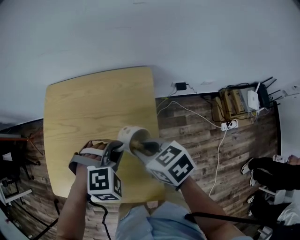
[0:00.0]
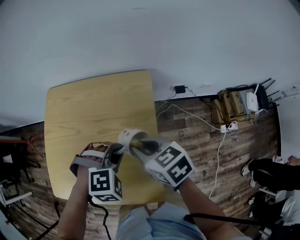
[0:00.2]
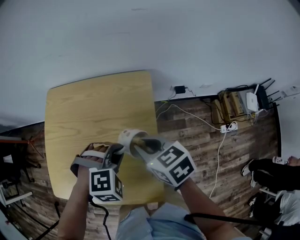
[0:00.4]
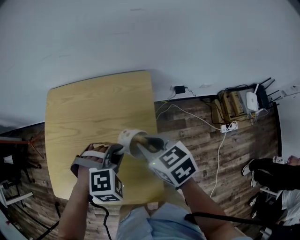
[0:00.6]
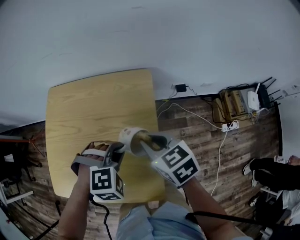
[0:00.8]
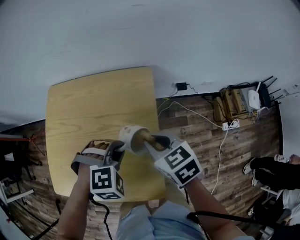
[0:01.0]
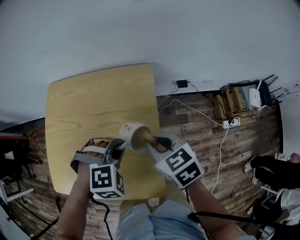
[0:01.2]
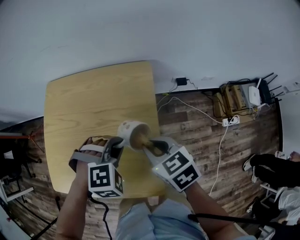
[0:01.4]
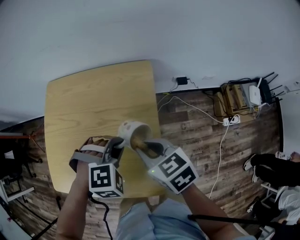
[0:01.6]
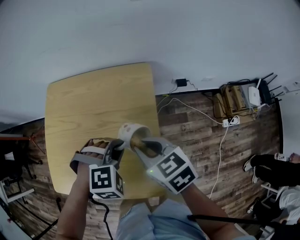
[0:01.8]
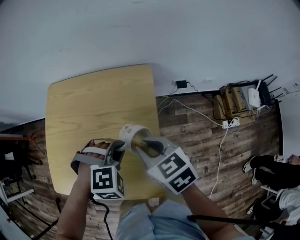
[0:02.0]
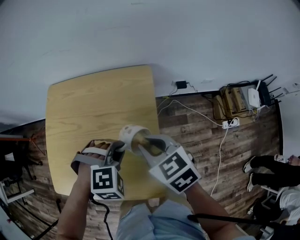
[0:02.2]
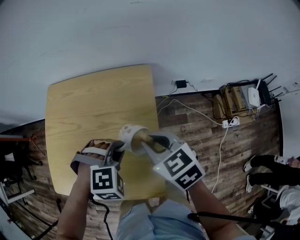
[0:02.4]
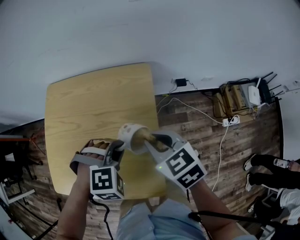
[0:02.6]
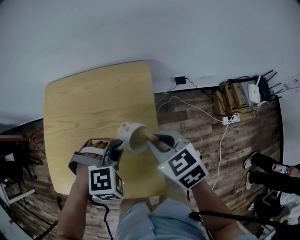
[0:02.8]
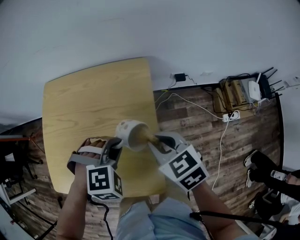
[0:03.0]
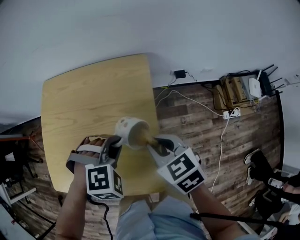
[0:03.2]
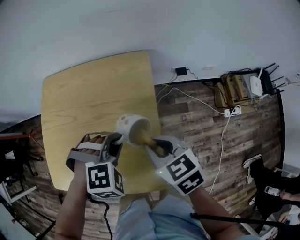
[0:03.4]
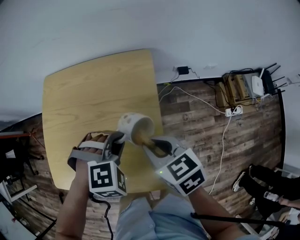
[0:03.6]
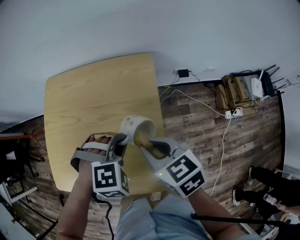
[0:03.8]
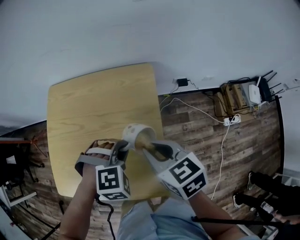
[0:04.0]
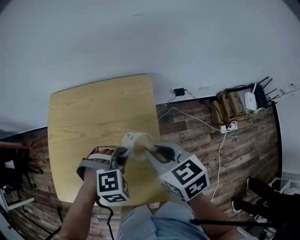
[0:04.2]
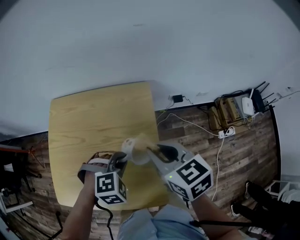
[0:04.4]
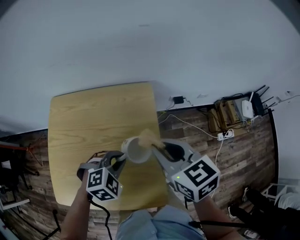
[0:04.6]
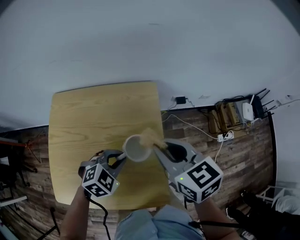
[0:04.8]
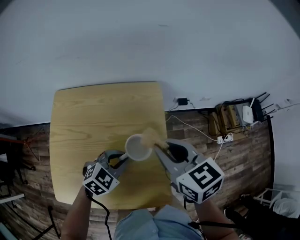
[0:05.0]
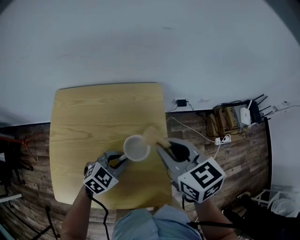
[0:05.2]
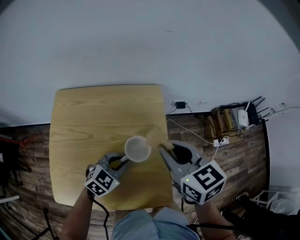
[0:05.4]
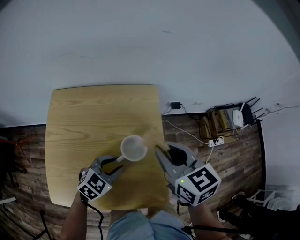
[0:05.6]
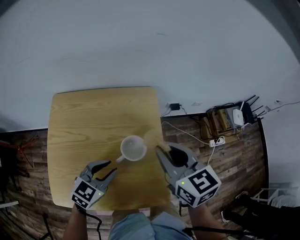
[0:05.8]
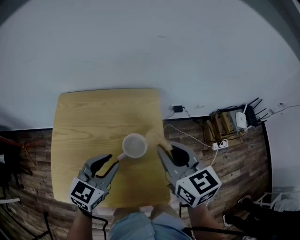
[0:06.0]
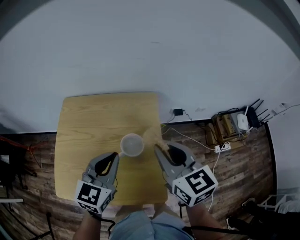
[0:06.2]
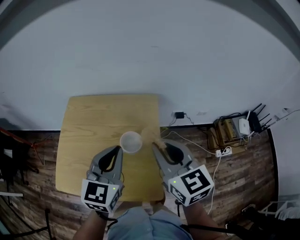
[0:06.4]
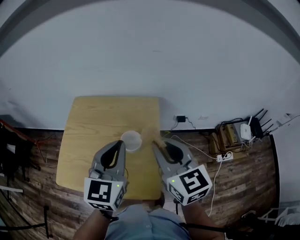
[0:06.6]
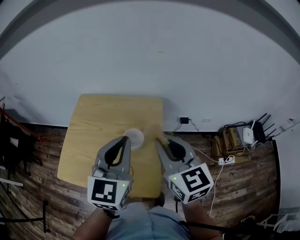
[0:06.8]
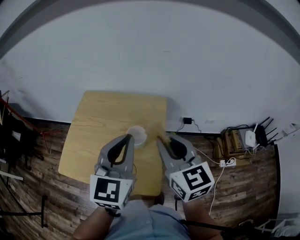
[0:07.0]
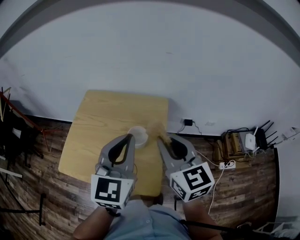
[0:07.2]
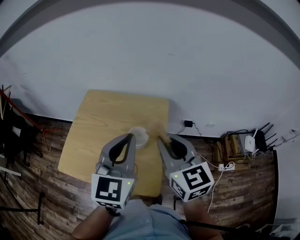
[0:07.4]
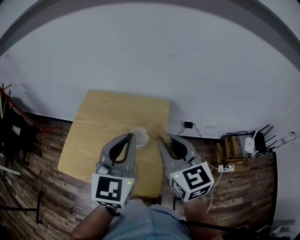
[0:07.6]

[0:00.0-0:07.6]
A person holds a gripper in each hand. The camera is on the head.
0:00.0 to 0:03.0: There are only small adjustments of the grippers.
0:03.0 to 0:04.6: The left gripper swivels about 20 degrees, while the right gripper travels upward by roughly 10 cm.
0:04.6 to 0:06.0: The left gripper heads upward and to the left, covering approximately 10 cm, and tips its fingers upward by approximately 40 degrees. Meanwhile the right gripper changes place by about 5 cm.
0:06.0 to 0:07.6: The left gripper travels upward by some 15 cm, turns by roughly 40 degrees, and closes up; the right gripper shifts some 10 cm upward and backward.

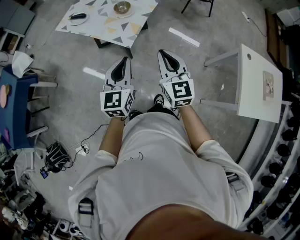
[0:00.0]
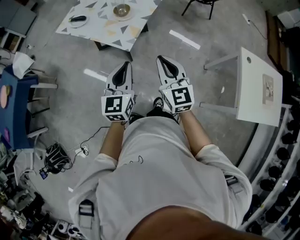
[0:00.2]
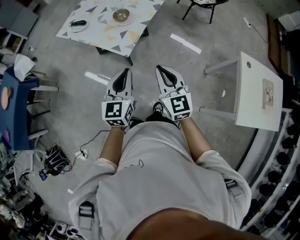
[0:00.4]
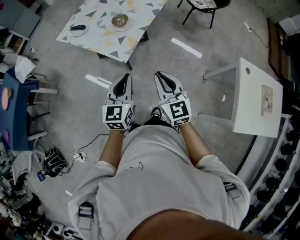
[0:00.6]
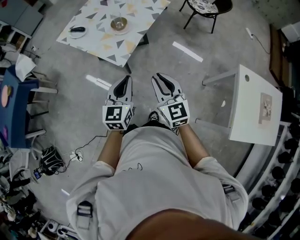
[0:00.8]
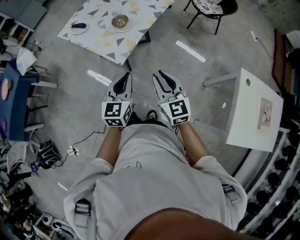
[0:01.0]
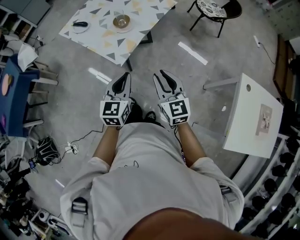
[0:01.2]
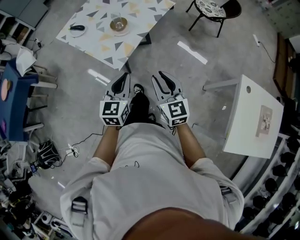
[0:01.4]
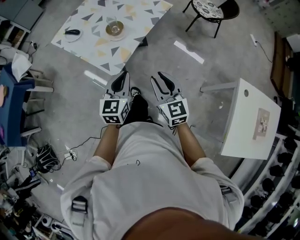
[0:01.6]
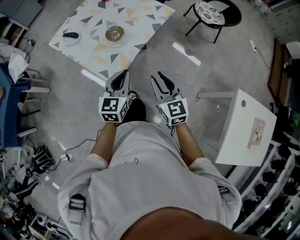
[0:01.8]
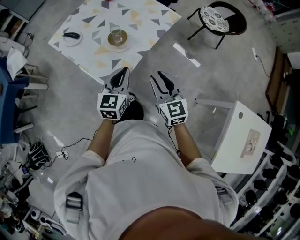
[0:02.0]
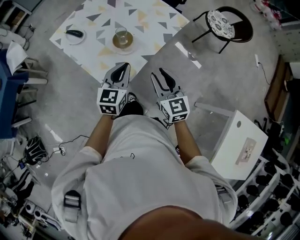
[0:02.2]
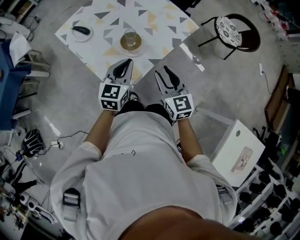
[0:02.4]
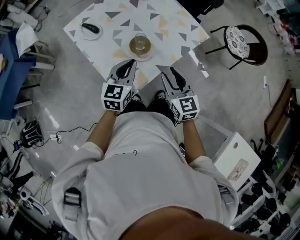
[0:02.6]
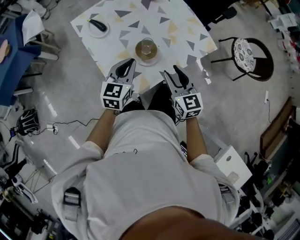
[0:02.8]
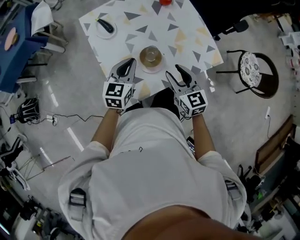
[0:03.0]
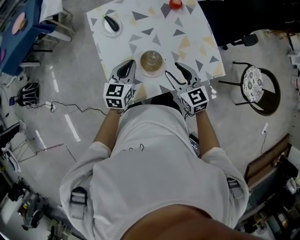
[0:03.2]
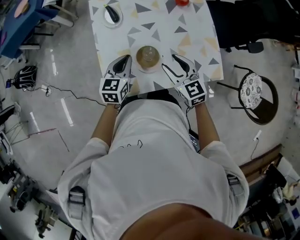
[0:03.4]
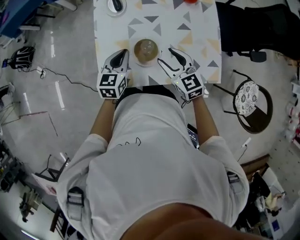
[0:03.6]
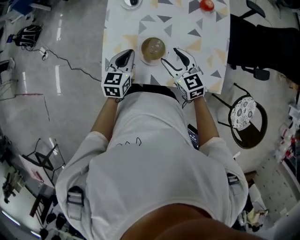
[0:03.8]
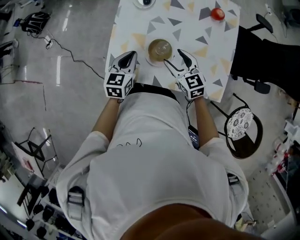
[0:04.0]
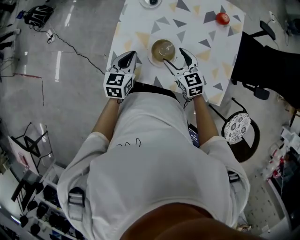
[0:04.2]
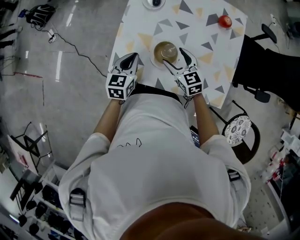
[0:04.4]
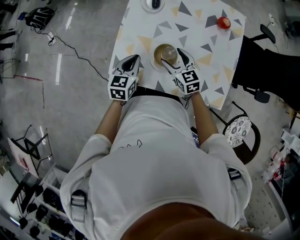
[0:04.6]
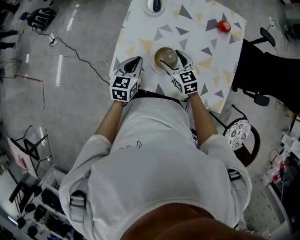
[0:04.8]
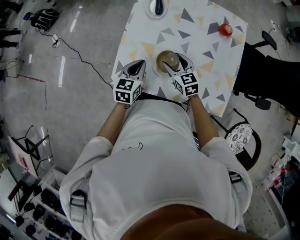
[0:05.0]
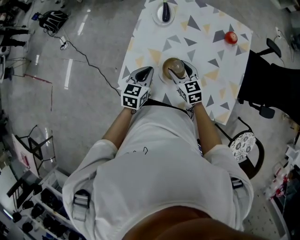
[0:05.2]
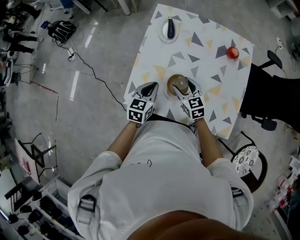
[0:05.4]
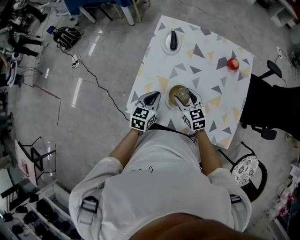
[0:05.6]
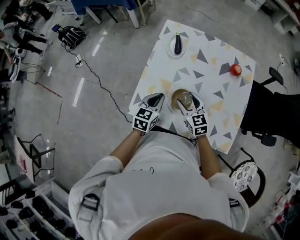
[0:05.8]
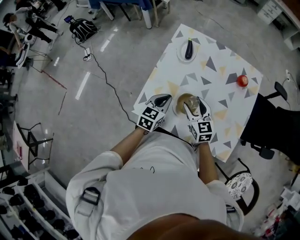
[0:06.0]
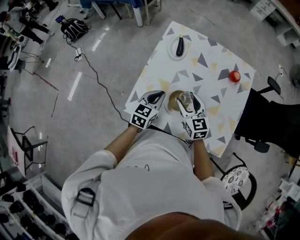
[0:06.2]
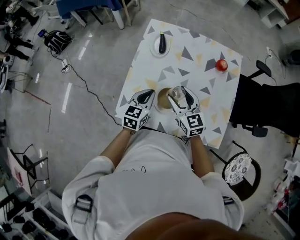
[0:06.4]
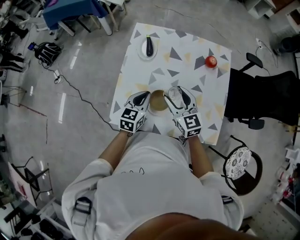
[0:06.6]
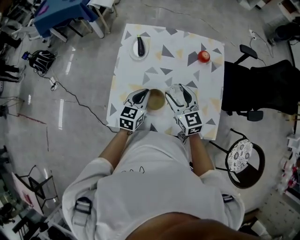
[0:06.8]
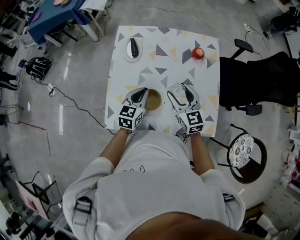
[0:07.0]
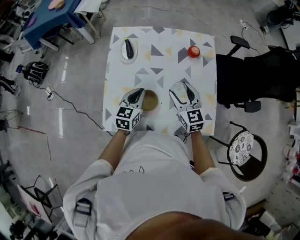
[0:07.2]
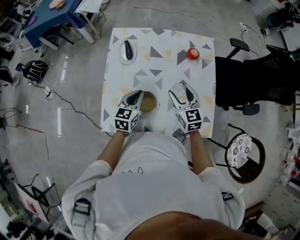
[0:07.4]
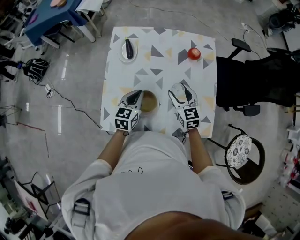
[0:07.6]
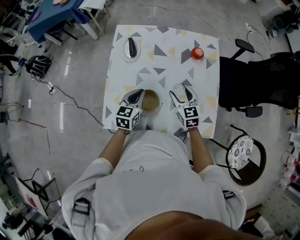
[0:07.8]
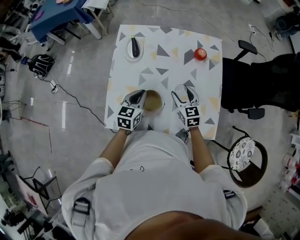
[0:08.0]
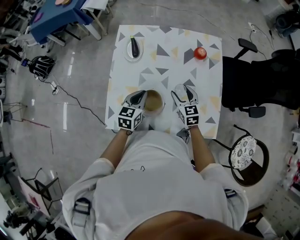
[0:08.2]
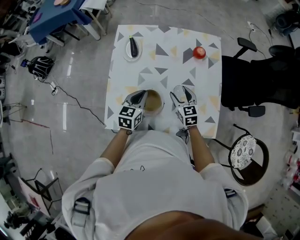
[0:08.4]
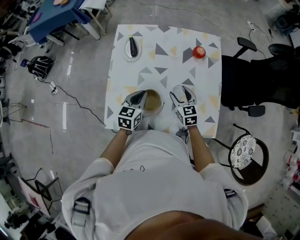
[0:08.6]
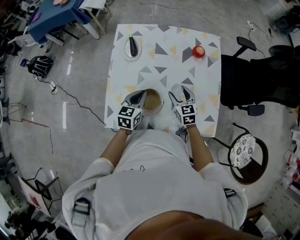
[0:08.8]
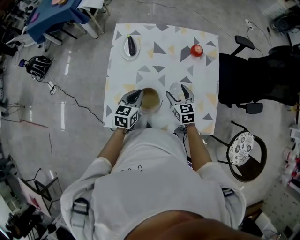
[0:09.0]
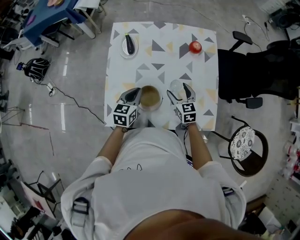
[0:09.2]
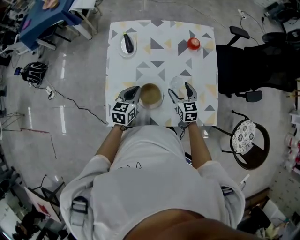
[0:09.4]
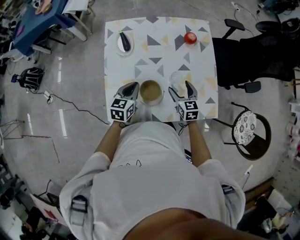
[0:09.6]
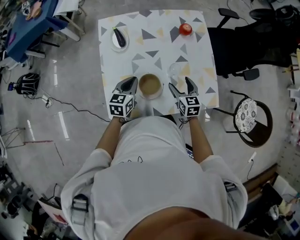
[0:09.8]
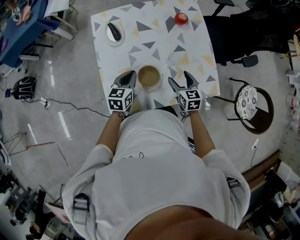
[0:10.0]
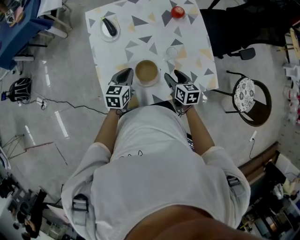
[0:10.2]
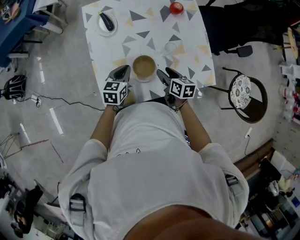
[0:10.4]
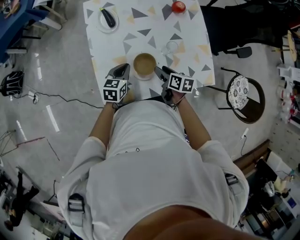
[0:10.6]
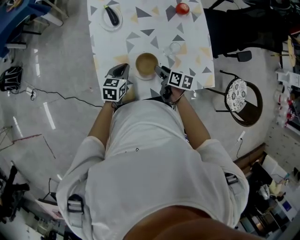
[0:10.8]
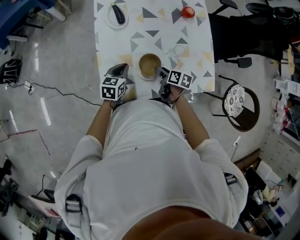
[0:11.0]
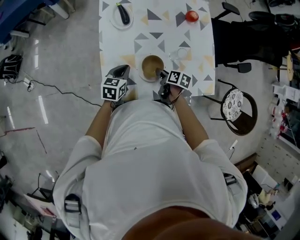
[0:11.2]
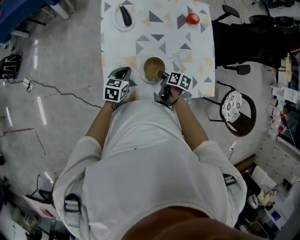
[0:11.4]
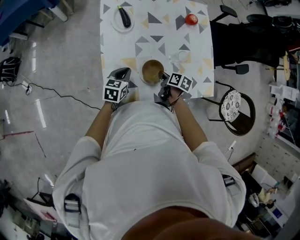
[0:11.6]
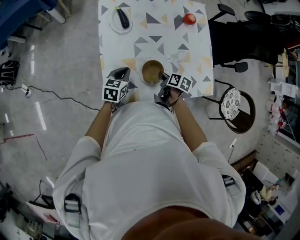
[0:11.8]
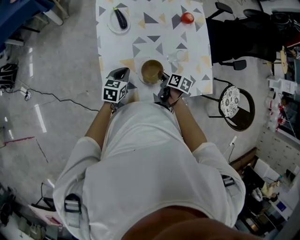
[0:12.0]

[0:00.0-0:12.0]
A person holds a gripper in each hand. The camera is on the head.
0:00.0 to 0:01.6: Both grippers travel together forward, to the right and downward, roughly 20 cm.
0:01.6 to 0:03.0: The left gripper ends up about 35 cm from where it was, and changes its angle by some 20 degrees, while the right gripper moves some 40 cm, and changes its angle by about 40 degrees.
0:03.0 to 0:04.4: The right gripper changes place by about 15 cm, swivels approximately 40 degrees, and opens up. Meanwhile the left gripper heads downward, covering roughly 5 cm, and changes its angle by about 40 degrees.
0:04.4 to 0:06.0: The grippers move only a little.
0:06.0 to 0:07.6: The right gripper is displaced to the right by some 15 cm, while the left gripper moves to the right and forward, about 10 cm.
0:07.6 to 0:09.0: The right gripper moves downward, roughly 5 cm.
0:09.0 to 0:10.4: The right gripper goes approximately 10 cm backward, and rolls clockwise, seen from behind, by approximately 40 degrees; the left gripper changes place by about 5 cm.
0:10.4 to 0:12.0: The left gripper is displaced to the left by approximately 5 cm; the right gripper ends up approximately 5 cm from where it was, rotates roughly 20 degrees, and closes up.

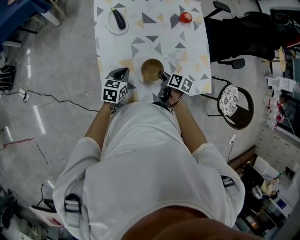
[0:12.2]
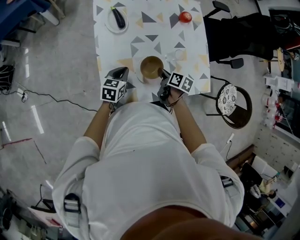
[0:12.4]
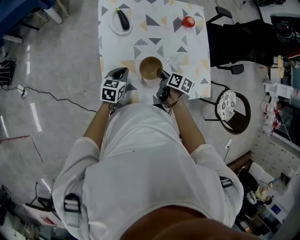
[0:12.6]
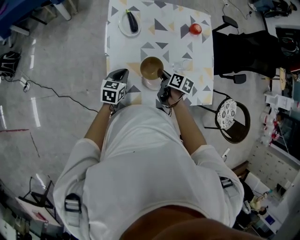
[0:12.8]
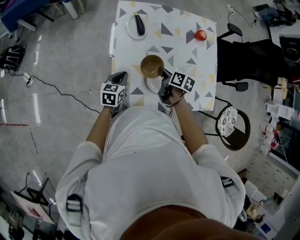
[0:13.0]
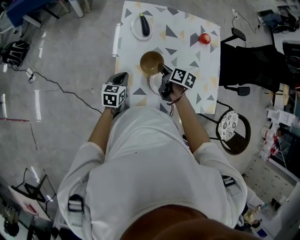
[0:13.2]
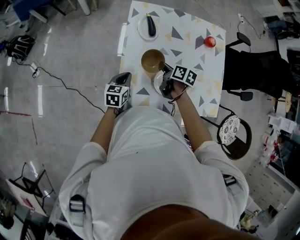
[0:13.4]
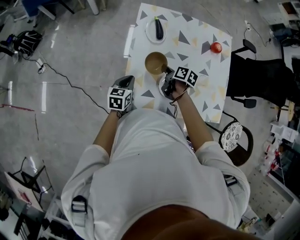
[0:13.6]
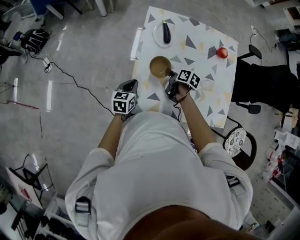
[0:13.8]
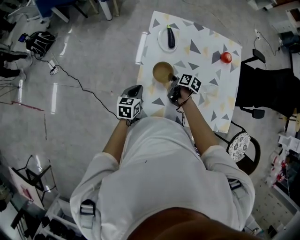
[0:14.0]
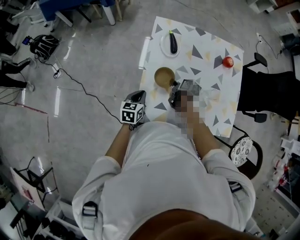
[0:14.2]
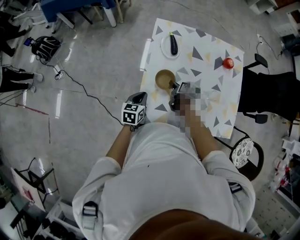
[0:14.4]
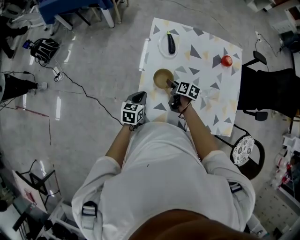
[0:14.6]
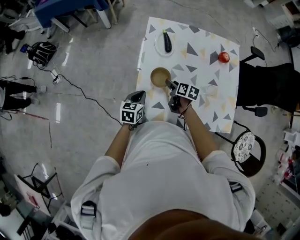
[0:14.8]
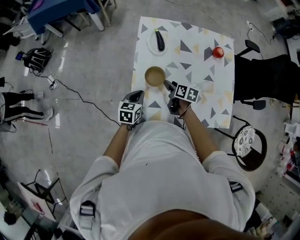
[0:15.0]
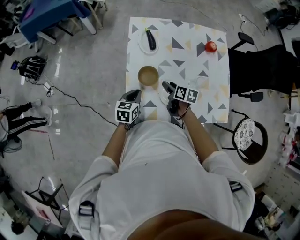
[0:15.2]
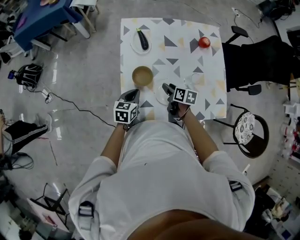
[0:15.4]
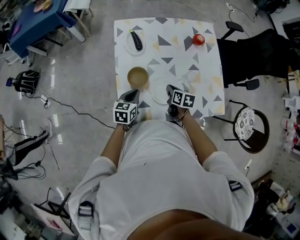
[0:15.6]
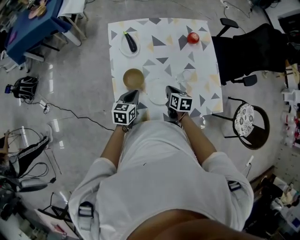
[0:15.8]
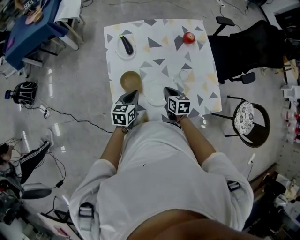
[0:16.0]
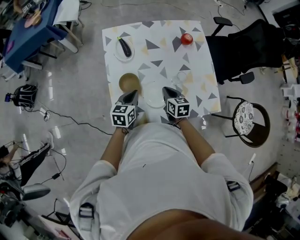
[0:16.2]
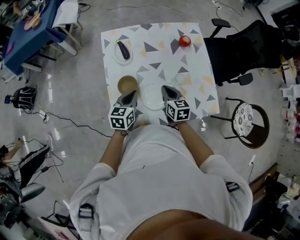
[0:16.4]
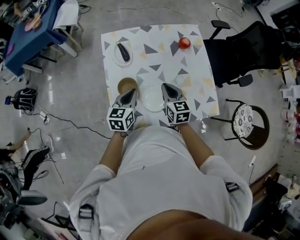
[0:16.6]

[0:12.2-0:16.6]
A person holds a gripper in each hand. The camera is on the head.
0:12.2 to 0:13.6: The right gripper heads to the left and forward, covering roughly 15 cm; the left gripper is displaced to the left by about 10 cm, and turns by about 20 degrees.
0:13.6 to 0:15.2: The right gripper ends up approximately 5 cm from where it was, and opens its fingers.
0:15.2 to 0:16.6: The left gripper travels upward, to the right and forward by approximately 15 cm. The right gripper heads upward and to the right, covering some 15 cm, rotates about 40 degrees, and closes up.
